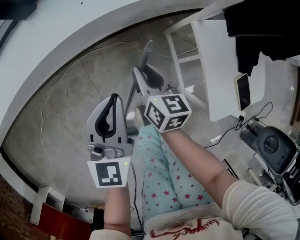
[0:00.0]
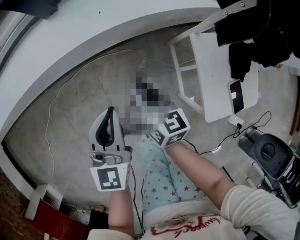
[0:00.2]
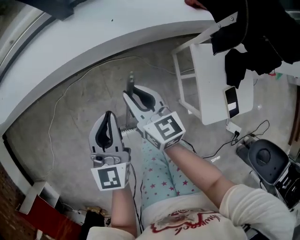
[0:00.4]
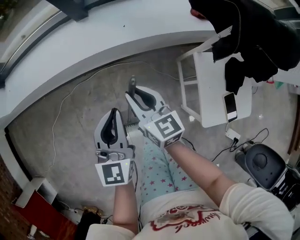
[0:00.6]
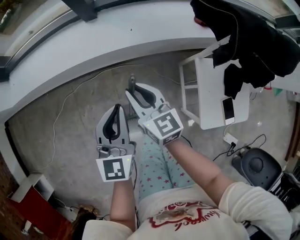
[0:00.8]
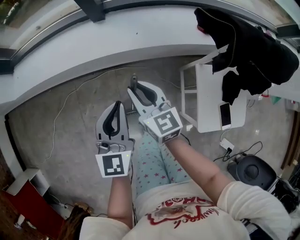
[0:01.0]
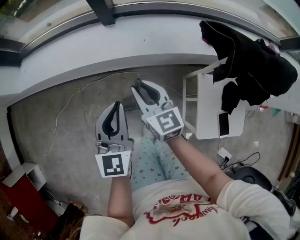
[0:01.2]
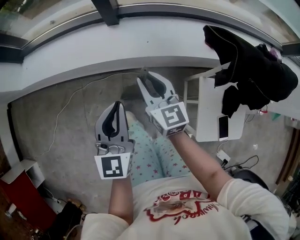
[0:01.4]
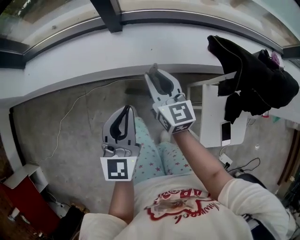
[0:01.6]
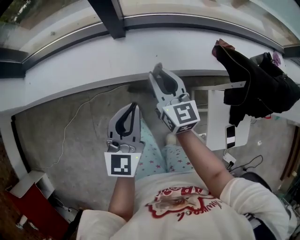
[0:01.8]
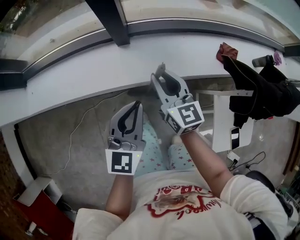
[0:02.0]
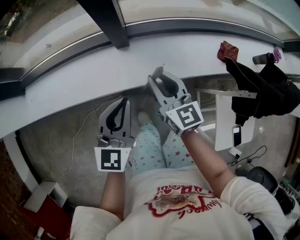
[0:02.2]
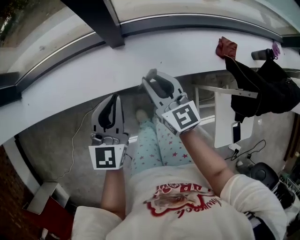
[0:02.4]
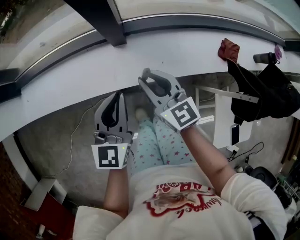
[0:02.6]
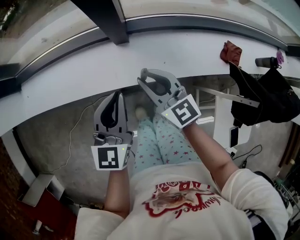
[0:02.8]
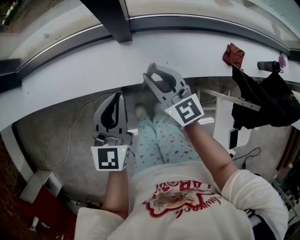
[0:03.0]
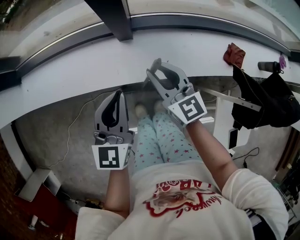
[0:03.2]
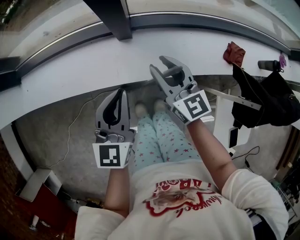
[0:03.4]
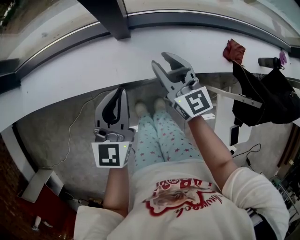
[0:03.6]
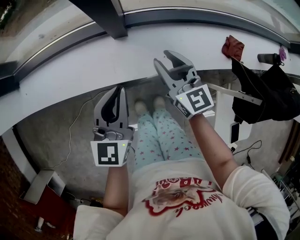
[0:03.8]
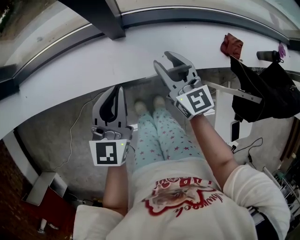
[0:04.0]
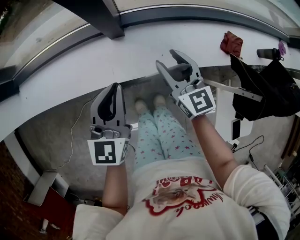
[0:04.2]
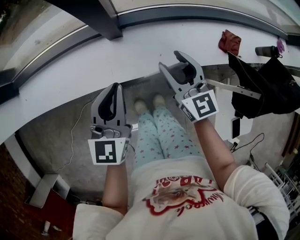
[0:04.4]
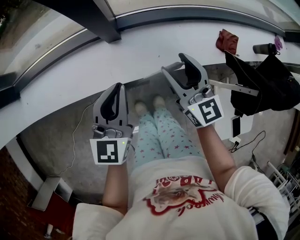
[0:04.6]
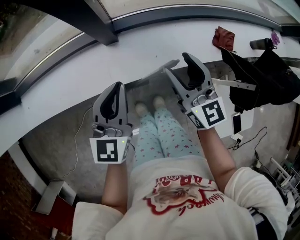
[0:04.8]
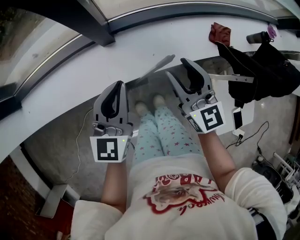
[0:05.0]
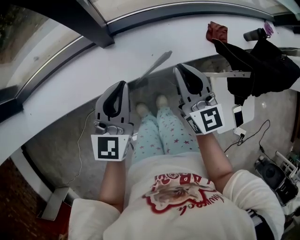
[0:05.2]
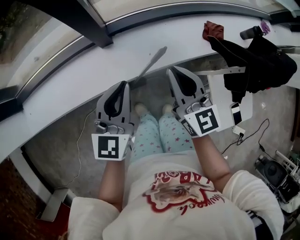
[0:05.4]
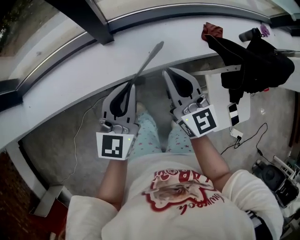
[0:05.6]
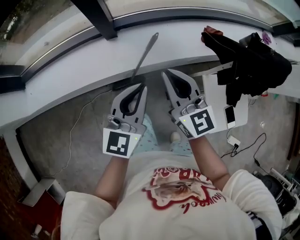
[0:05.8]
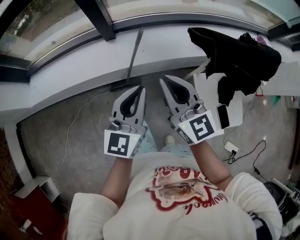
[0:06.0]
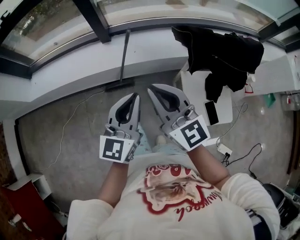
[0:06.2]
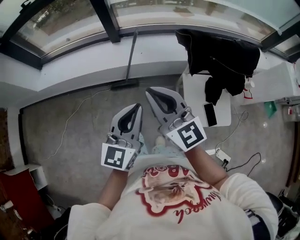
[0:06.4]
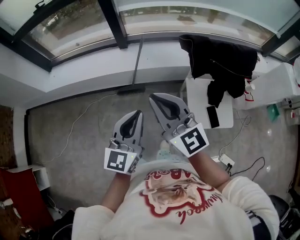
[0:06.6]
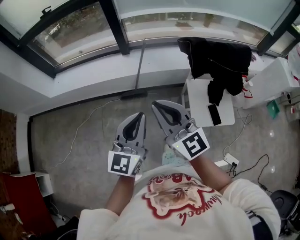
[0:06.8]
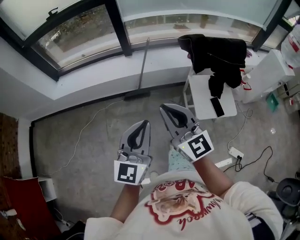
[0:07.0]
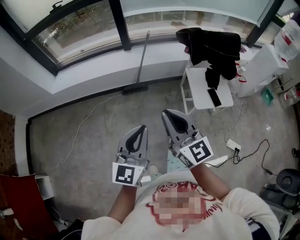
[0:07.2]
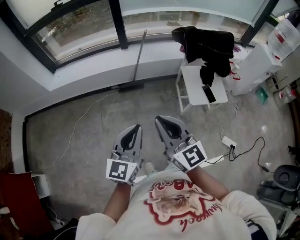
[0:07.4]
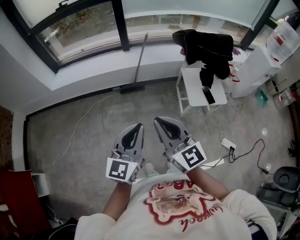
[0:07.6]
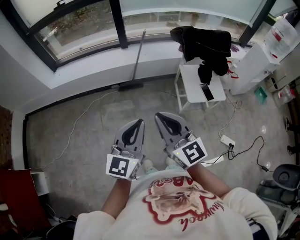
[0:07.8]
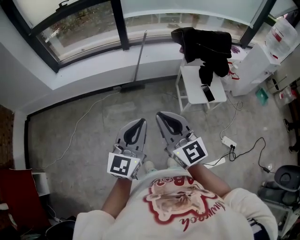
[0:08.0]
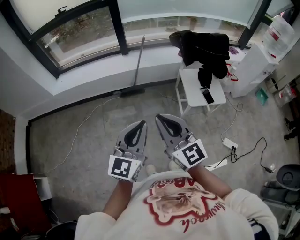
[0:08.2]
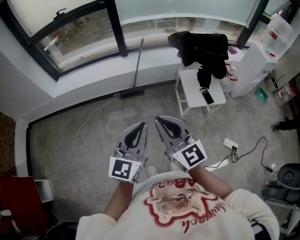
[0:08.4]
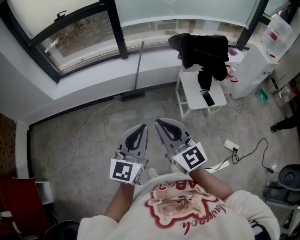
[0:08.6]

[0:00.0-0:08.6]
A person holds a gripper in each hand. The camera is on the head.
0:00.0 to 0:01.4: The left gripper heads upward and to the left, covering roughly 25 cm, and swivels roughly 30 degrees. The right gripper moves upward, some 30 cm, and swivels roughly 40 degrees.
0:01.4 to 0:02.8: The right gripper moves forward and to the left, approximately 20 cm. Meanwhile the left gripper is displaced forward by about 25 cm.
0:02.8 to 0:04.4: The right gripper goes approximately 10 cm to the right, and opens its fingers.
0:04.4 to 0:05.8: The left gripper shifts some 20 cm backward, to the right and upward; the right gripper heads backward and upward, covering about 20 cm, and closes.
0:05.8 to 0:07.2: Both grippers are carried backward, approximately 60 cm.
0:07.2 to 0:08.6: Both grippers move backward, approximately 10 cm.

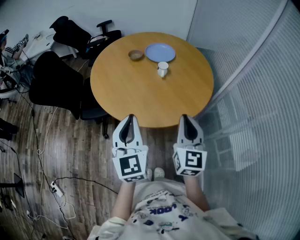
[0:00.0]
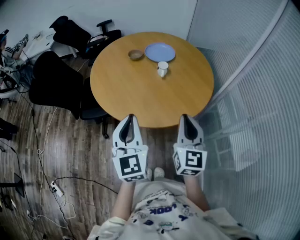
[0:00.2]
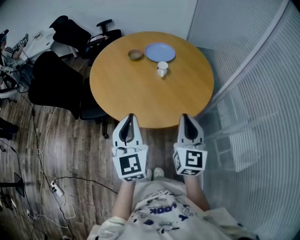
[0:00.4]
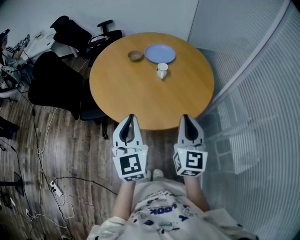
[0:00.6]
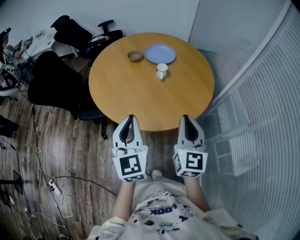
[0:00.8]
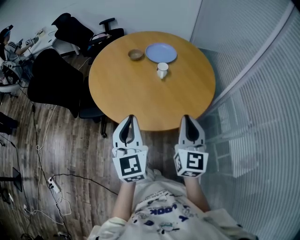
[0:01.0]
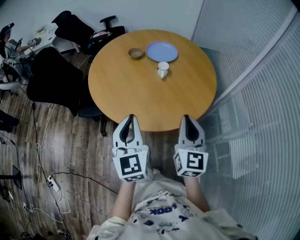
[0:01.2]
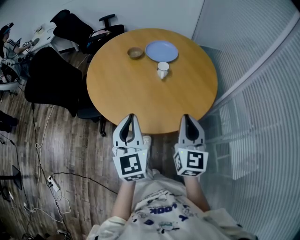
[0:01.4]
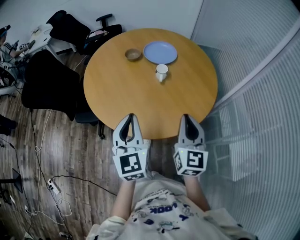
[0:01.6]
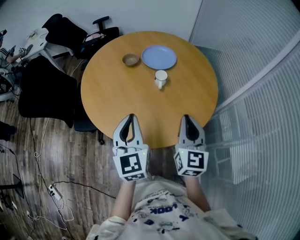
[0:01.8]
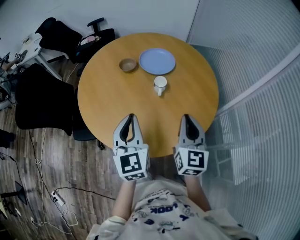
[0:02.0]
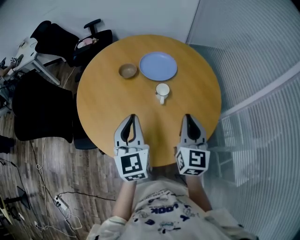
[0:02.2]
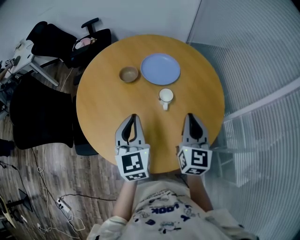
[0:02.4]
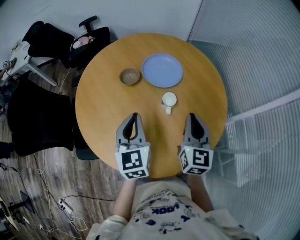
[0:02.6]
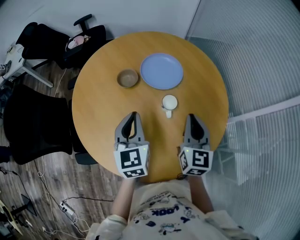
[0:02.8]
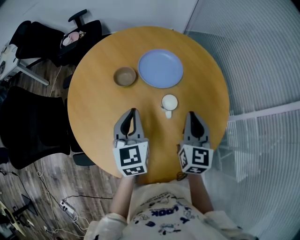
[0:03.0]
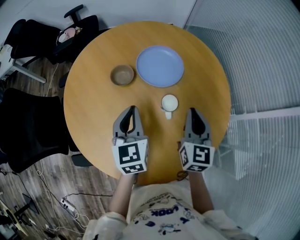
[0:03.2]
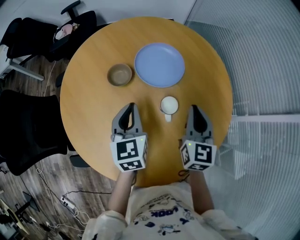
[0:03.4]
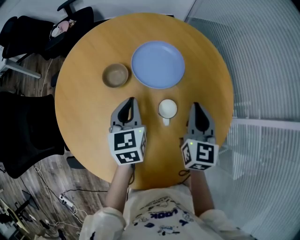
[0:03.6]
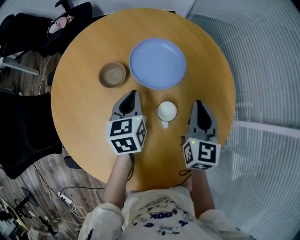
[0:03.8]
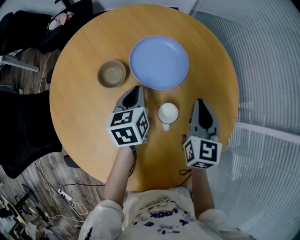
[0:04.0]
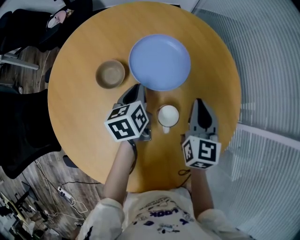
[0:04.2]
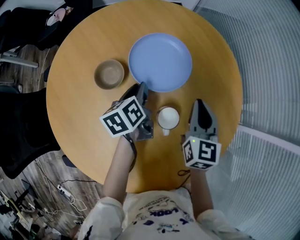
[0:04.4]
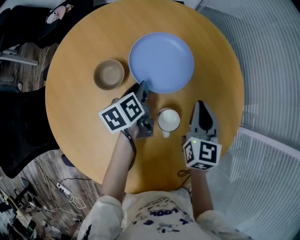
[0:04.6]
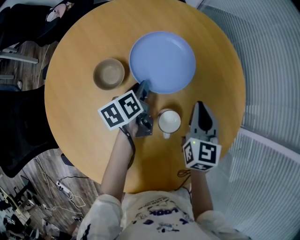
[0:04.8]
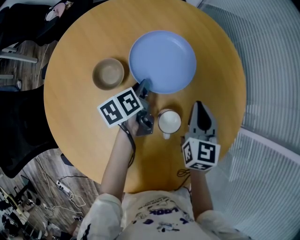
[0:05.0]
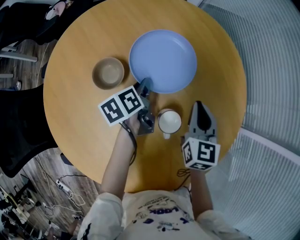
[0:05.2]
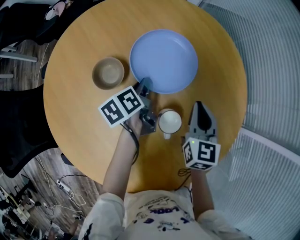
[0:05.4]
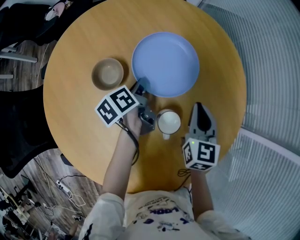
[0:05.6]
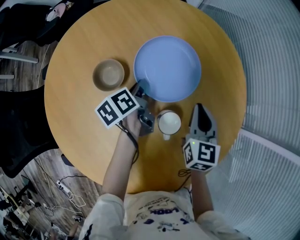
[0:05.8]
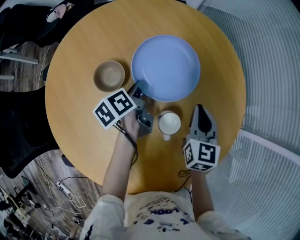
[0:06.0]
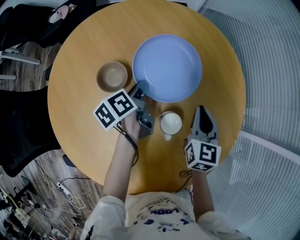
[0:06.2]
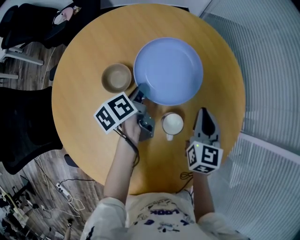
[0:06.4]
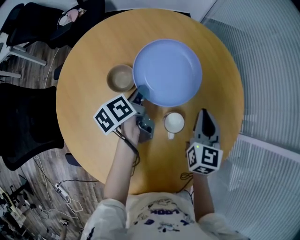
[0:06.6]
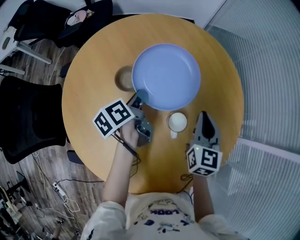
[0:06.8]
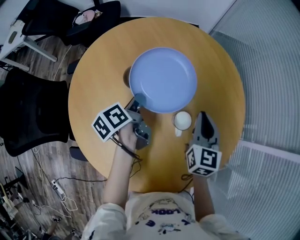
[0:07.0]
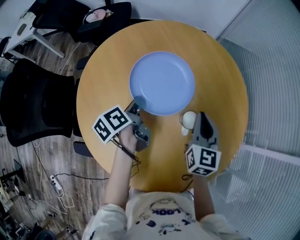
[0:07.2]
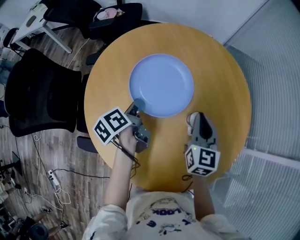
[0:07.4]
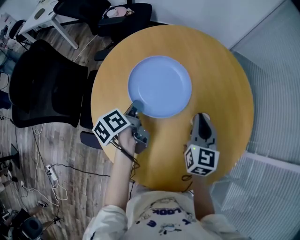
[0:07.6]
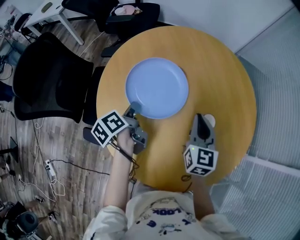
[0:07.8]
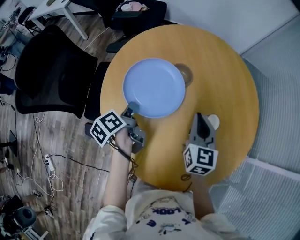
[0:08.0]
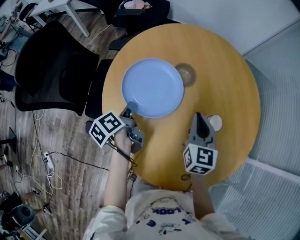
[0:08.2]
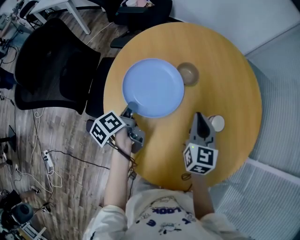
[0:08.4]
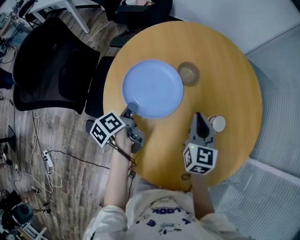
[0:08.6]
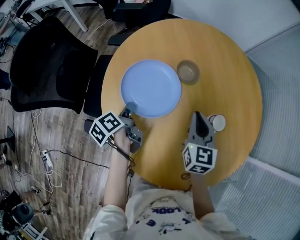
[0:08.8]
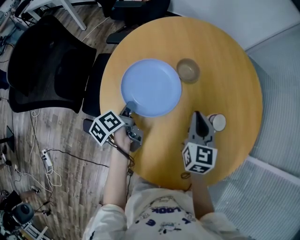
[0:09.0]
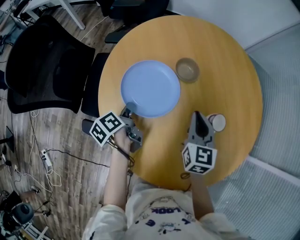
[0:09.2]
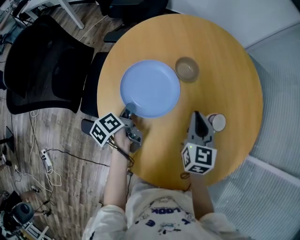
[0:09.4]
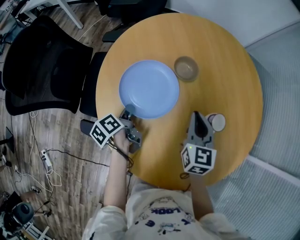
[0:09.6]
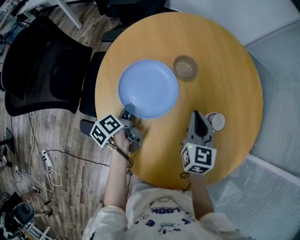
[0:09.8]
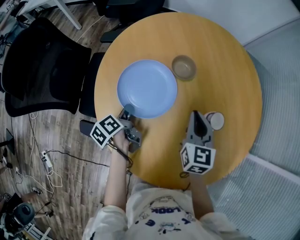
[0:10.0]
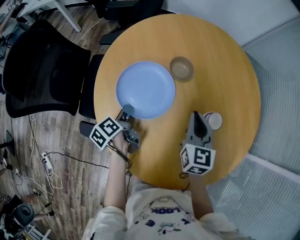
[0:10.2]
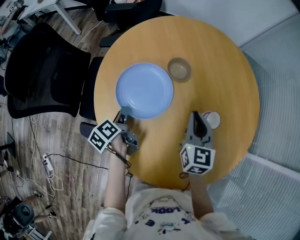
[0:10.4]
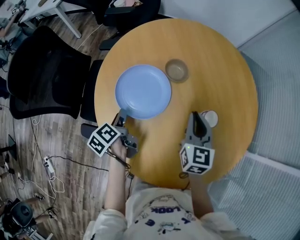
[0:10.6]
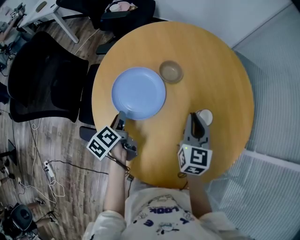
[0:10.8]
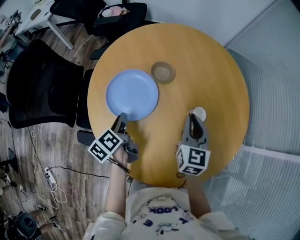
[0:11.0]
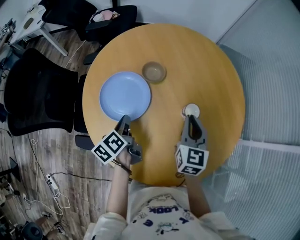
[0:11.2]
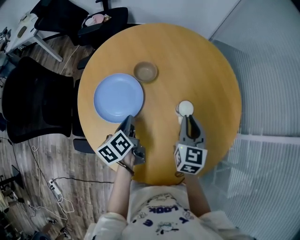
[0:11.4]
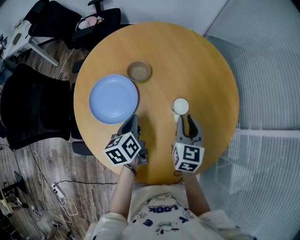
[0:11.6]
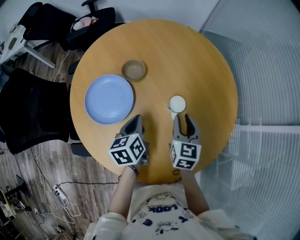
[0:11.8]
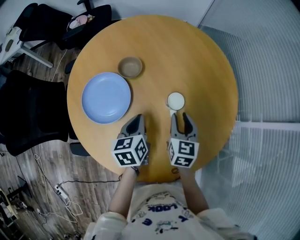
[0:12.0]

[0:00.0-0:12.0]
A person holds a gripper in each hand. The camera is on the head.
0:00.0 to 0:01.6: The two grippers go about 10 cm forward.
0:01.6 to 0:03.0: The grippers both shift forward by some 30 cm.
0:03.0 to 0:04.4: The left gripper shifts roughly 25 cm downward and forward, rotates around the line of its fingers by approximately 40 degrees, counterclockwise from behind, and opens its fingers, while the right gripper is displaced forward and downward by approximately 15 cm.
0:04.4 to 0:06.0: The grippers stay close to where they were, moving slightly.
0:06.0 to 0:07.6: The left gripper is displaced backward, to the left and upward by roughly 25 cm, and swivels approximately 20 degrees, while the right gripper shifts roughly 20 cm to the left, upward and backward.
0:07.6 to 0:09.0: The right gripper is displaced to the left by approximately 10 cm. Meanwhile the left gripper travels to the left, downward and backward by roughly 15 cm.
0:09.0 to 0:10.4: The grippers move only a little.
0:10.4 to 0:12.0: The left gripper shifts roughly 25 cm to the right, rolls clockwise, seen from behind, by roughly 50 degrees, and closes up; the right gripper moves to the right, approximately 15 cm, and opens up.

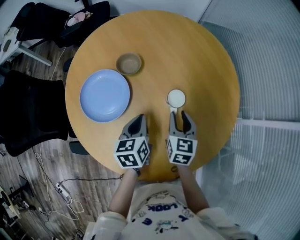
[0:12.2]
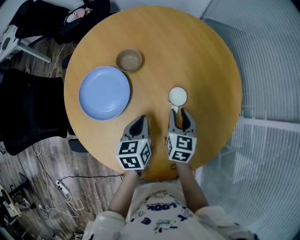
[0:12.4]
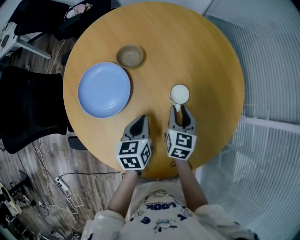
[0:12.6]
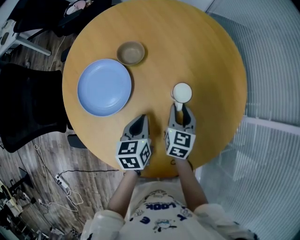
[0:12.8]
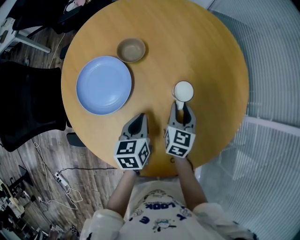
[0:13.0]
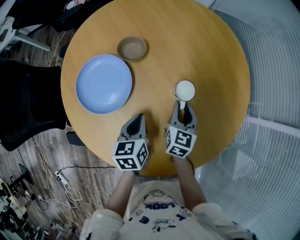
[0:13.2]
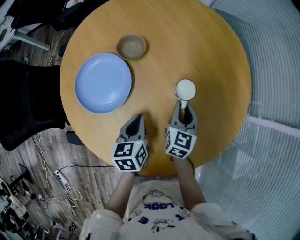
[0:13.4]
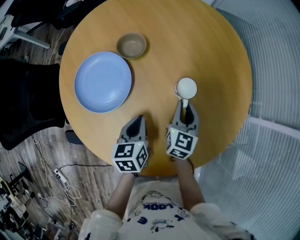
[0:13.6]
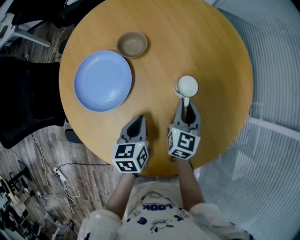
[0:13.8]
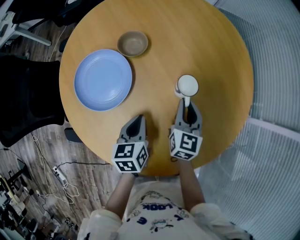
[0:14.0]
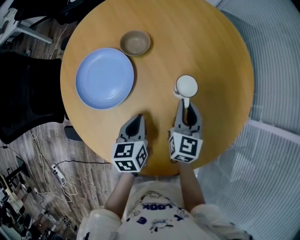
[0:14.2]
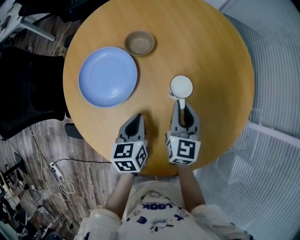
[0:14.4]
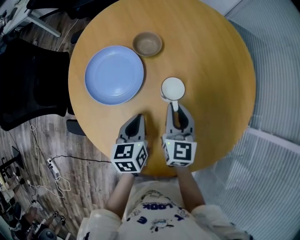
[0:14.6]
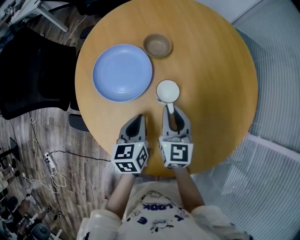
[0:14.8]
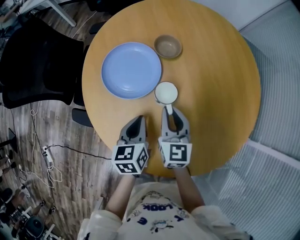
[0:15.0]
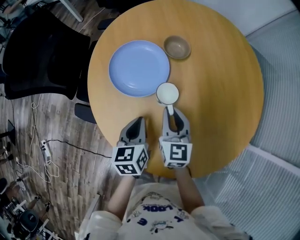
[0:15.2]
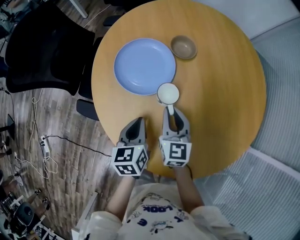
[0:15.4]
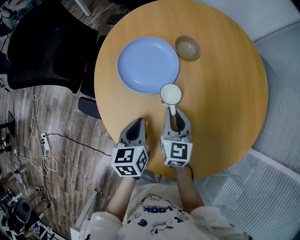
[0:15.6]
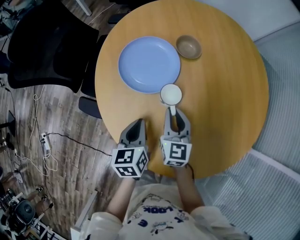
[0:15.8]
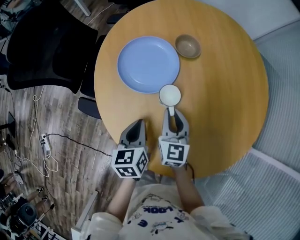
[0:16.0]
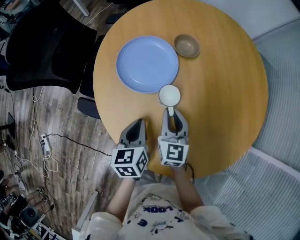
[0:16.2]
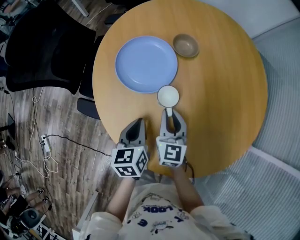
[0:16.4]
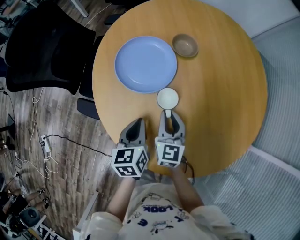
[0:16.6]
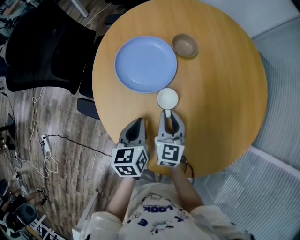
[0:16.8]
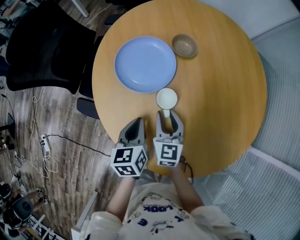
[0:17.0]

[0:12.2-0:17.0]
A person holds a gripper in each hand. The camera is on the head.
0:12.2 to 0:13.8: The left gripper goes some 5 cm downward.
0:13.8 to 0:15.4: The right gripper changes place by roughly 20 cm, and turns by some 30 degrees, while the left gripper shifts by about 10 cm, and turns by about 20 degrees.
0:15.4 to 0:17.0: The grippers make only small movements.
